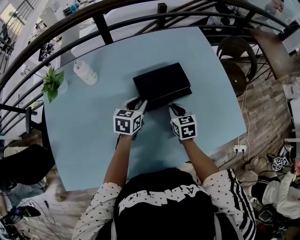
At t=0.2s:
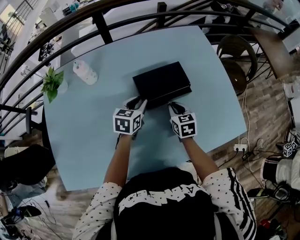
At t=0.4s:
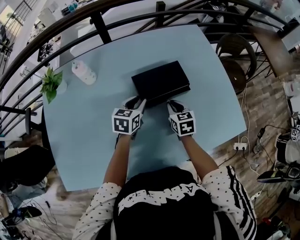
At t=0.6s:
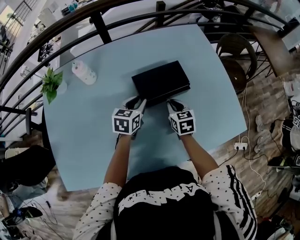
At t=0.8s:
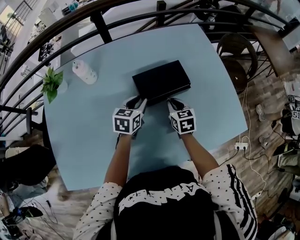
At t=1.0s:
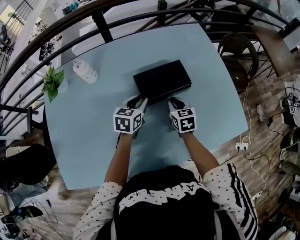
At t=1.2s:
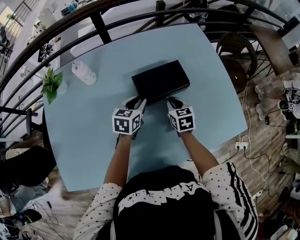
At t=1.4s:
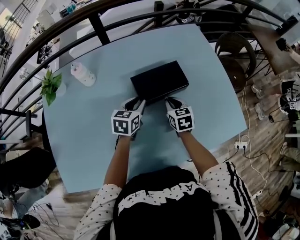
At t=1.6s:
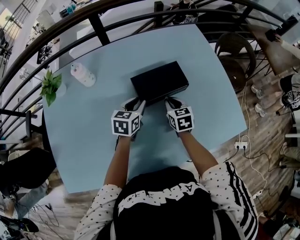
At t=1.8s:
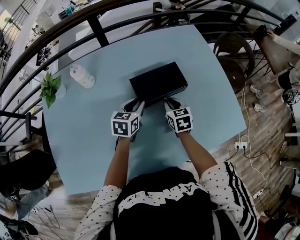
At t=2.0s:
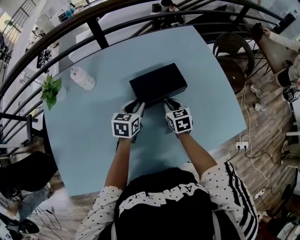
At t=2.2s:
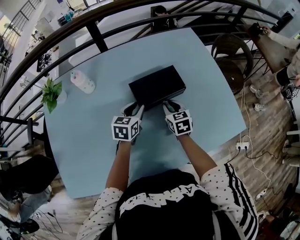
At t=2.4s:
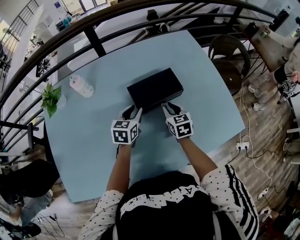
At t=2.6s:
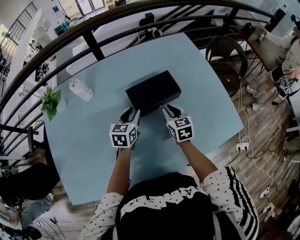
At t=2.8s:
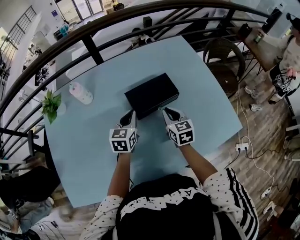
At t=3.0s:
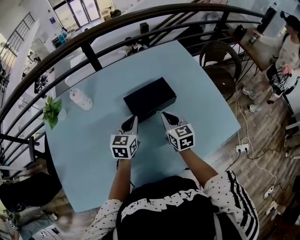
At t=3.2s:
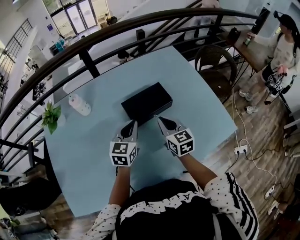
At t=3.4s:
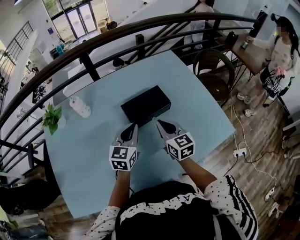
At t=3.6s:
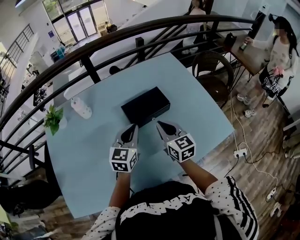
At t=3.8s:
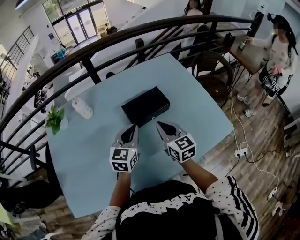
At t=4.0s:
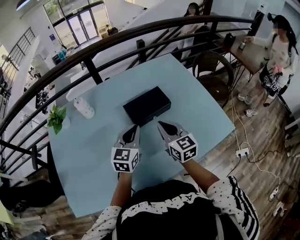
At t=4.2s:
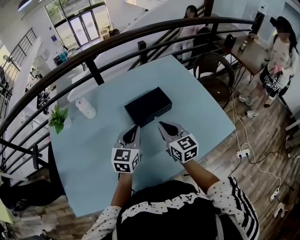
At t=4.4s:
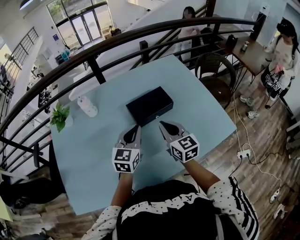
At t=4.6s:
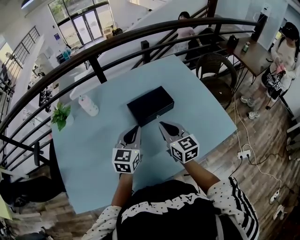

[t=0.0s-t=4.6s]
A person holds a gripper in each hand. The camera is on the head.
t=0.0s to t=1.6s: The grippers move only a little.
t=1.6s to t=3.0s: The grippers both shift upward by some 5 cm.
t=3.0s to t=4.6s: The right gripper is displaced upward and backward by approximately 15 cm; the left gripper travels backward and upward by about 15 cm.

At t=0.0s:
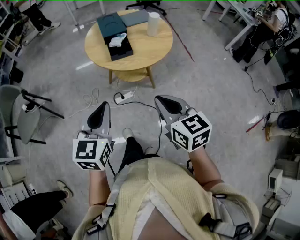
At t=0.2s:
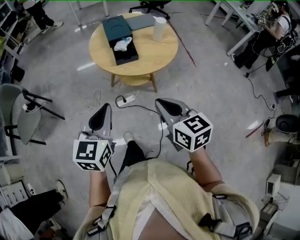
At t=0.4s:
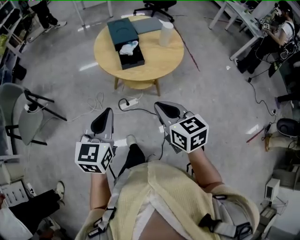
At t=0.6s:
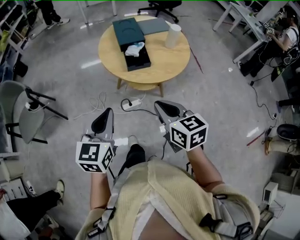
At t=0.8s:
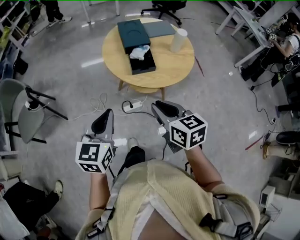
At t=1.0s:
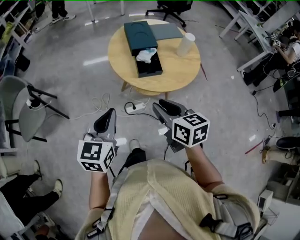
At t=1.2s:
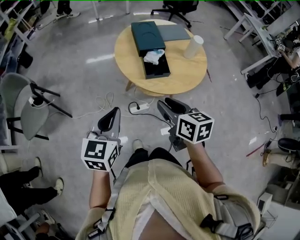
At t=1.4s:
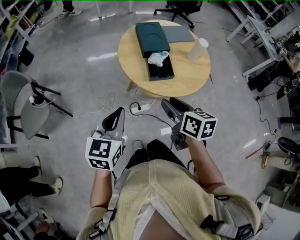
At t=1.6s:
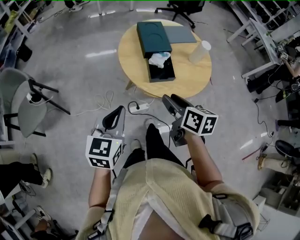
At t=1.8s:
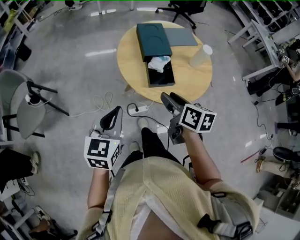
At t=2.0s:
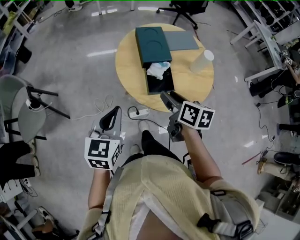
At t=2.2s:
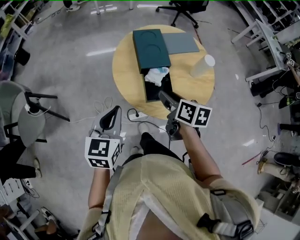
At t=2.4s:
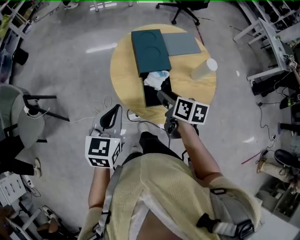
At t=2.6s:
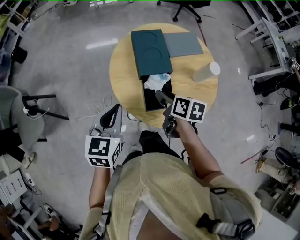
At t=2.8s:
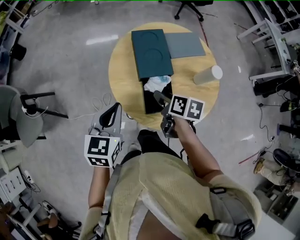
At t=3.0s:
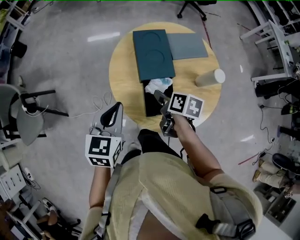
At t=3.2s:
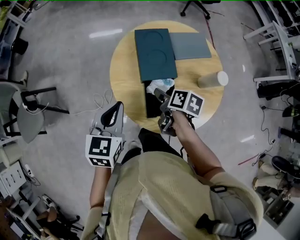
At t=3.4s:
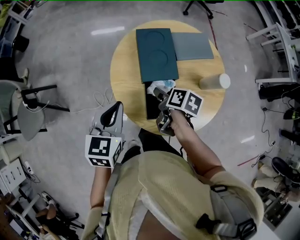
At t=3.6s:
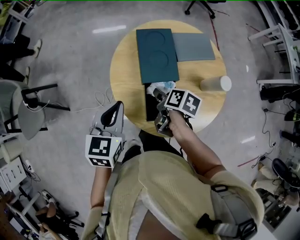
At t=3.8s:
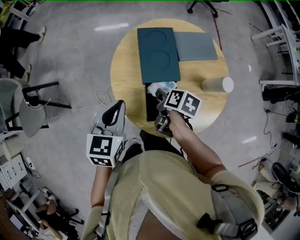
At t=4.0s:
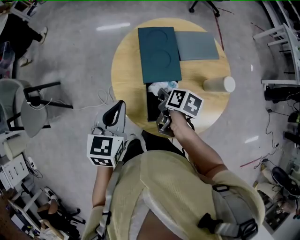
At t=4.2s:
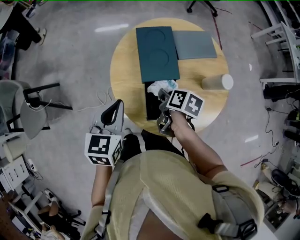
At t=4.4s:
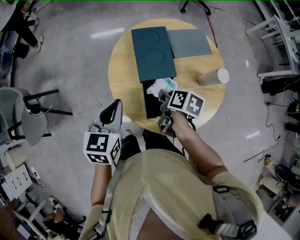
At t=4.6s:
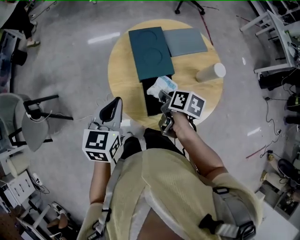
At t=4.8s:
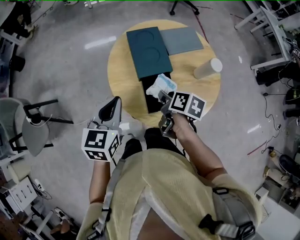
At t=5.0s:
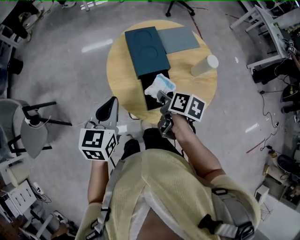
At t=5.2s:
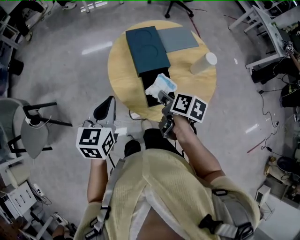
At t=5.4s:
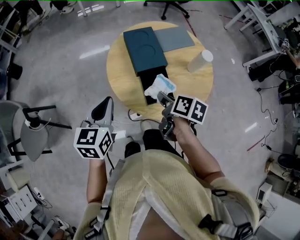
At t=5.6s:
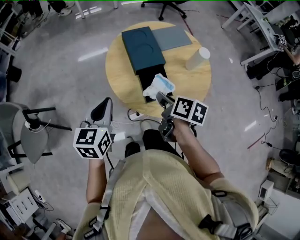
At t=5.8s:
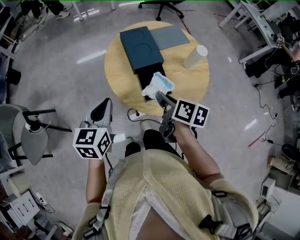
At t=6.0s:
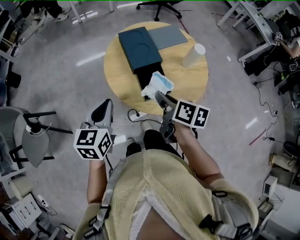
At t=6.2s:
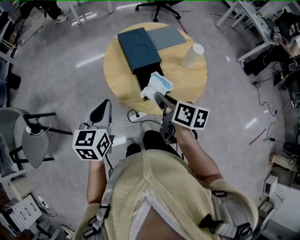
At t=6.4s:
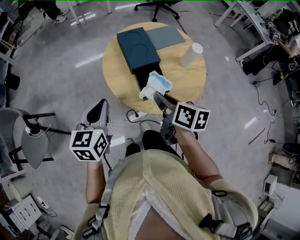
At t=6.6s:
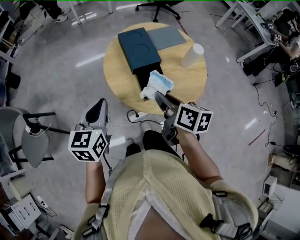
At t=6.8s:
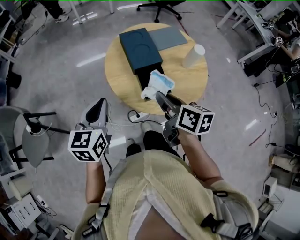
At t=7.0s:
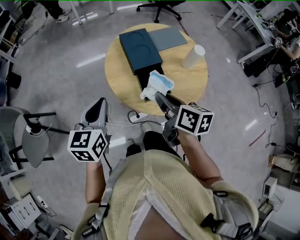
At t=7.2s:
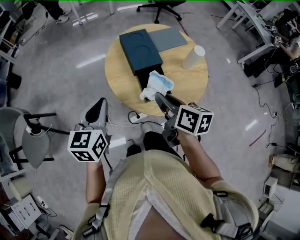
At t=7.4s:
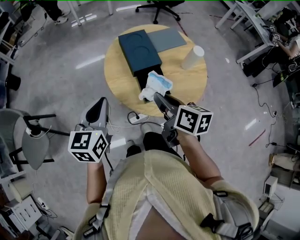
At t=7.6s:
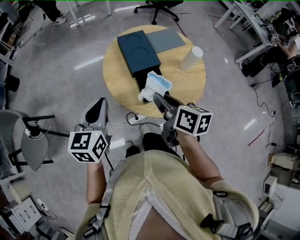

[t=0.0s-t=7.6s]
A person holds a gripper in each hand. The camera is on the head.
t=0.0s to t=1.6s: The two grippers go roughly 20 cm forward and to the left. The right gripper swivels roughly 30 degrees, and opens.
t=1.6s to t=3.0s: The left gripper goes approximately 20 cm forward. The right gripper heads forward and downward, covering some 25 cm, and swivels some 30 degrees.
t=3.0s to t=4.6s: The right gripper closes up.
t=4.6s to t=6.0s: The left gripper is displaced backward by about 5 cm; the right gripper moves upward and backward, roughly 15 cm, and swivels approximately 20 degrees.
t=6.0s to t=7.6s: The grippers move only a little.

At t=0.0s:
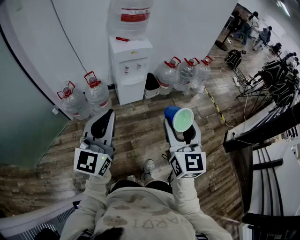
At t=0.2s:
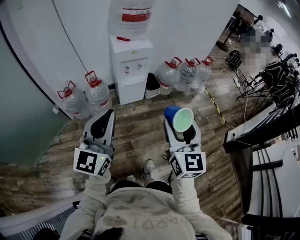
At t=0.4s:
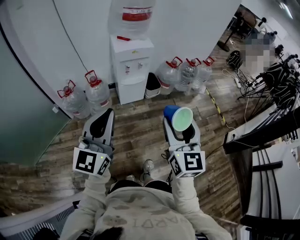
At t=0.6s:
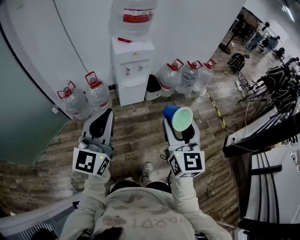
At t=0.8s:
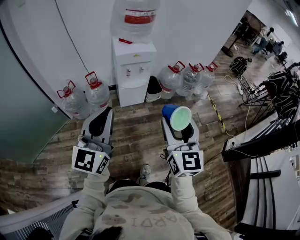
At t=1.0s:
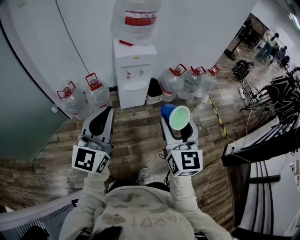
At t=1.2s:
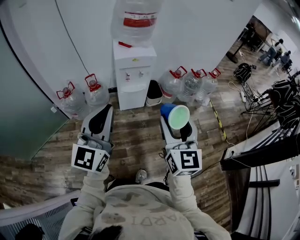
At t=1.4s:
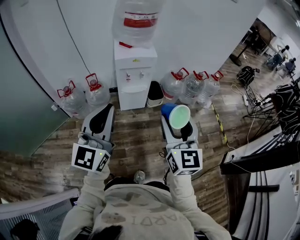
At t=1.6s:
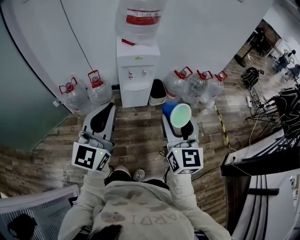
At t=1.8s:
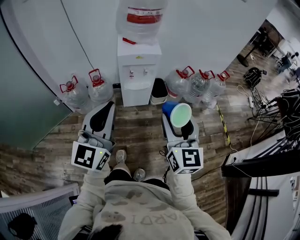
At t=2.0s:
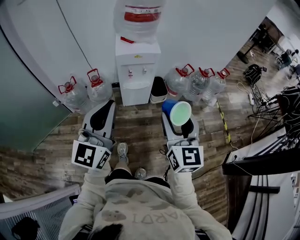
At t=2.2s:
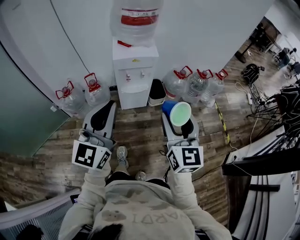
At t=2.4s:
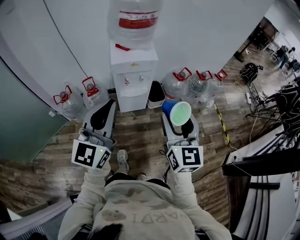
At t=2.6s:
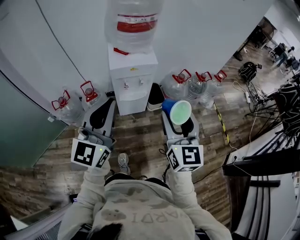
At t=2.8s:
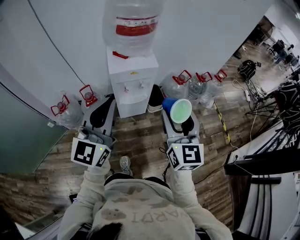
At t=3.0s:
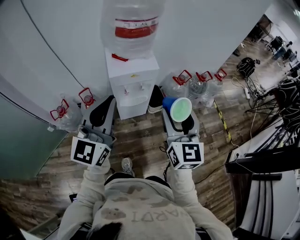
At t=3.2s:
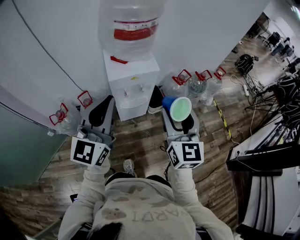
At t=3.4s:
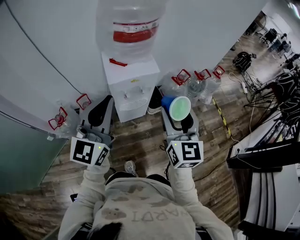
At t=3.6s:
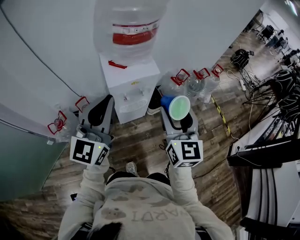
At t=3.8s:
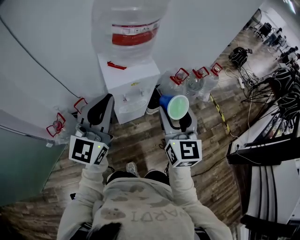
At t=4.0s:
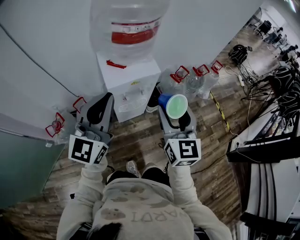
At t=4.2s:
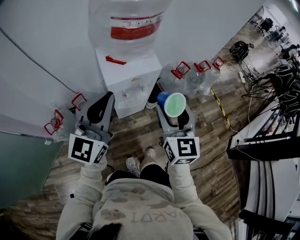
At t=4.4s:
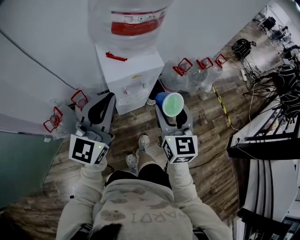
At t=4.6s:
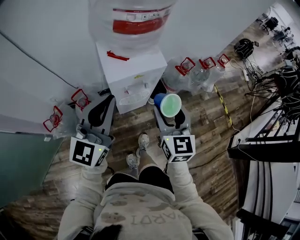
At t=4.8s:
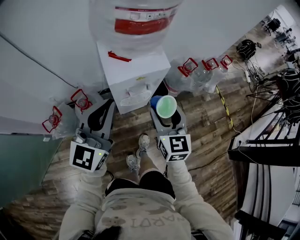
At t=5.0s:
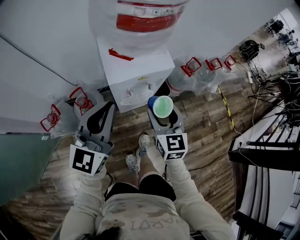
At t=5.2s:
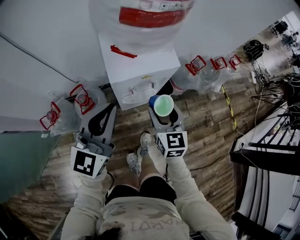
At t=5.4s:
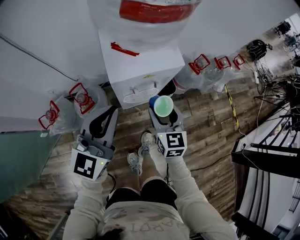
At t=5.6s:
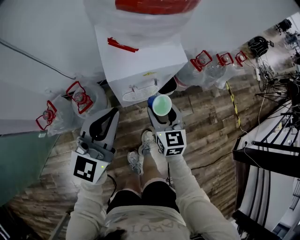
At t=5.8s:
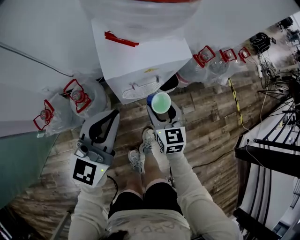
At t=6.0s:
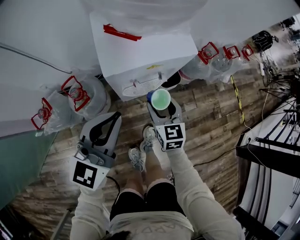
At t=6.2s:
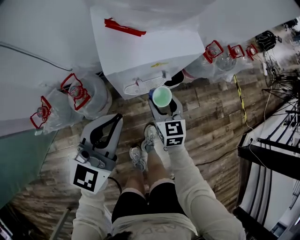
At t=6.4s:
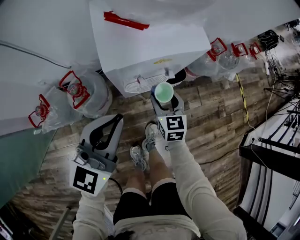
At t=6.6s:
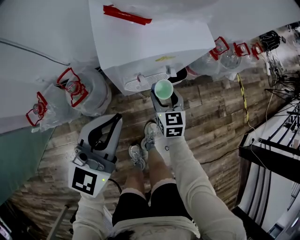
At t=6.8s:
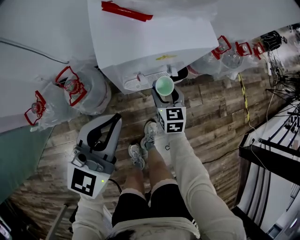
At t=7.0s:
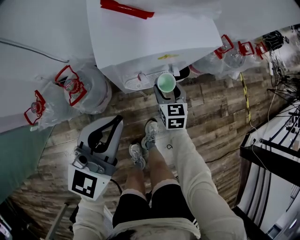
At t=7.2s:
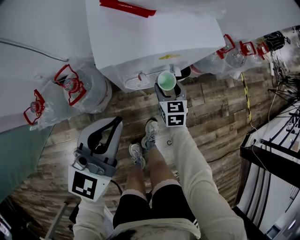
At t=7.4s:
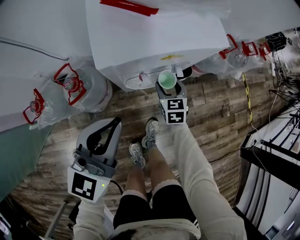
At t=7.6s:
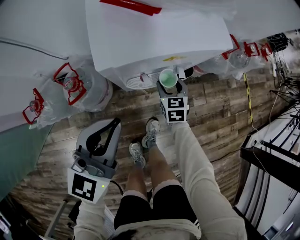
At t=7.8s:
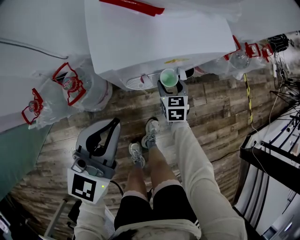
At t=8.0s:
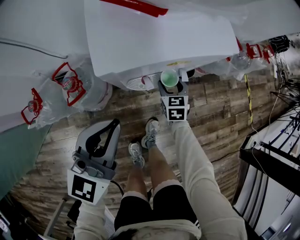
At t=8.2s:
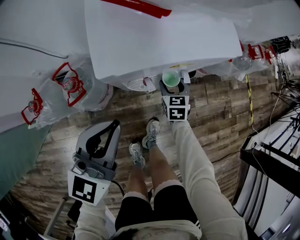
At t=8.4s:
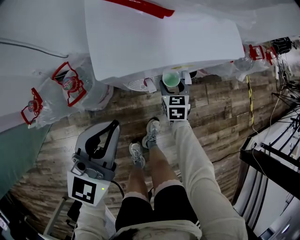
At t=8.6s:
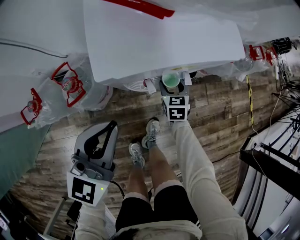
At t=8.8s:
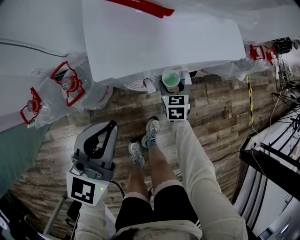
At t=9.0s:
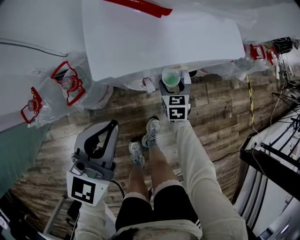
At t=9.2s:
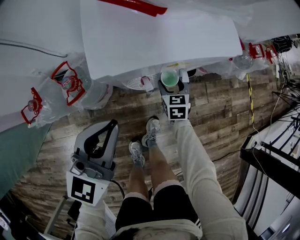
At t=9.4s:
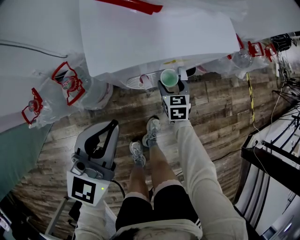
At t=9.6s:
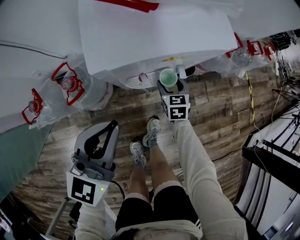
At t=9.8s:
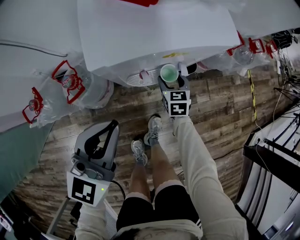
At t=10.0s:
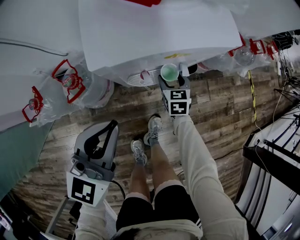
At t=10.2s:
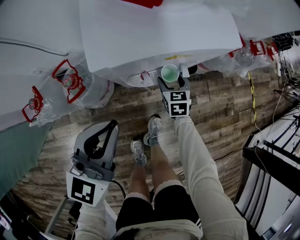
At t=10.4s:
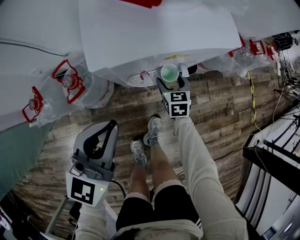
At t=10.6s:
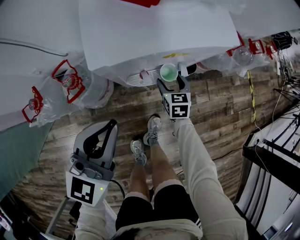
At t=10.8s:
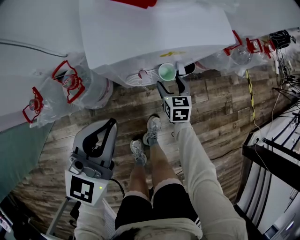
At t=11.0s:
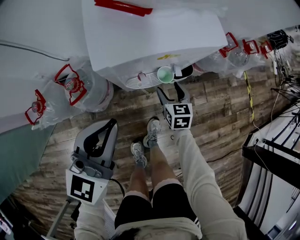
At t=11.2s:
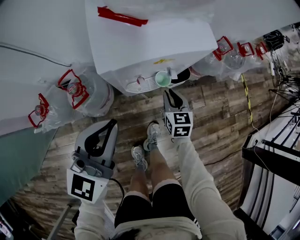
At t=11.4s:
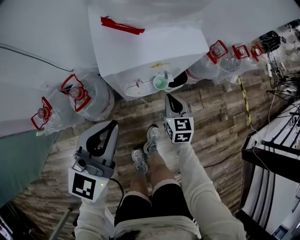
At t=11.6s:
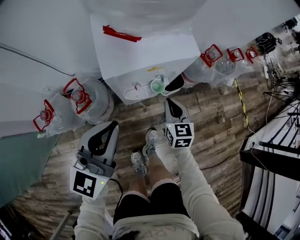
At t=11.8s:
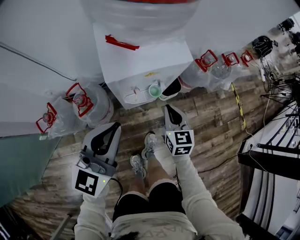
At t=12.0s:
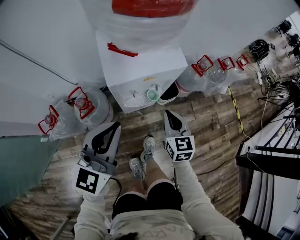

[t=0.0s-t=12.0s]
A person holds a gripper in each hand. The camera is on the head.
t=0.0s to t=1.6s: The right gripper shifts about 15 cm forward. The left gripper heads forward and to the right, covering about 15 cm.
t=1.6s to t=3.0s: Both grippers move forward, some 20 cm.
t=3.0s to t=4.4s: The two grippers go approximately 15 cm forward, to the left and downward.
t=4.4s to t=6.0s: The left gripper moves downward, roughly 20 cm, while the right gripper heads downward, covering about 30 cm.
t=6.0s to t=7.6s: The right gripper heads downward and forward, covering some 20 cm. Meanwhile the left gripper moves downward, approximately 10 cm.
t=7.6s to t=10.4s: The grippers stay close to where they were, moving slightly.
t=10.4s to t=12.0s: The right gripper travels upward and backward by roughly 30 cm, and closes; the left gripper goes roughly 15 cm upward.
